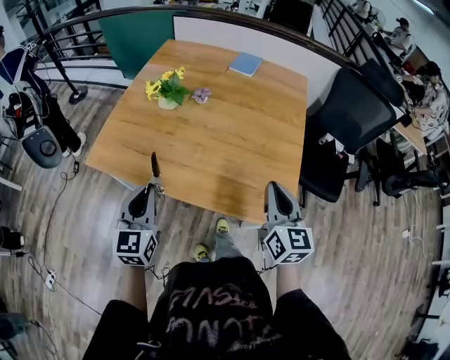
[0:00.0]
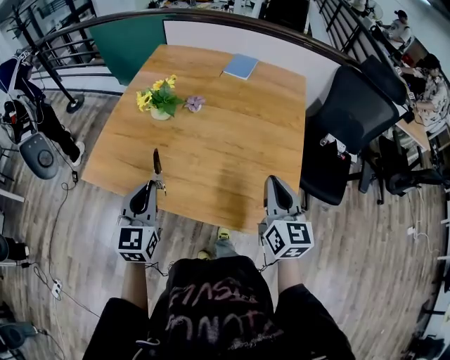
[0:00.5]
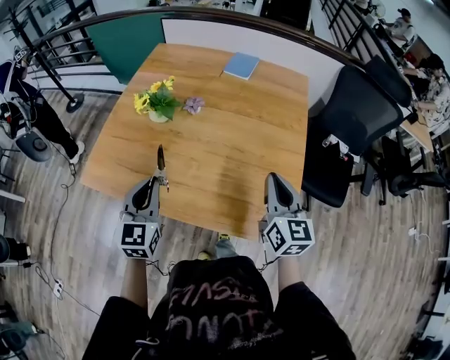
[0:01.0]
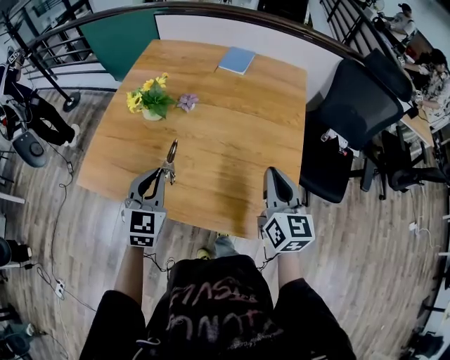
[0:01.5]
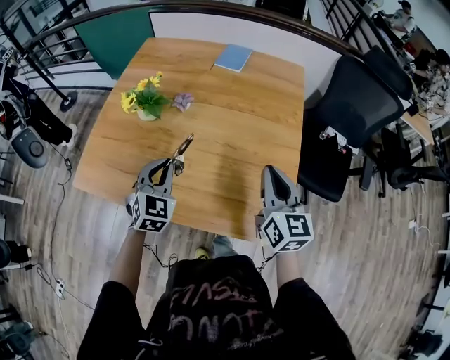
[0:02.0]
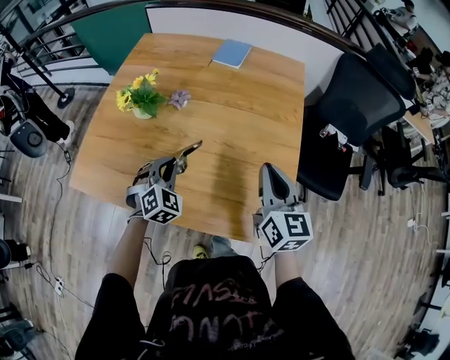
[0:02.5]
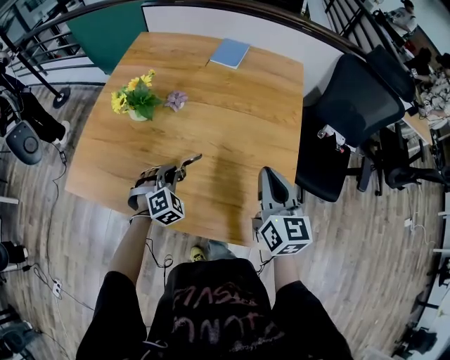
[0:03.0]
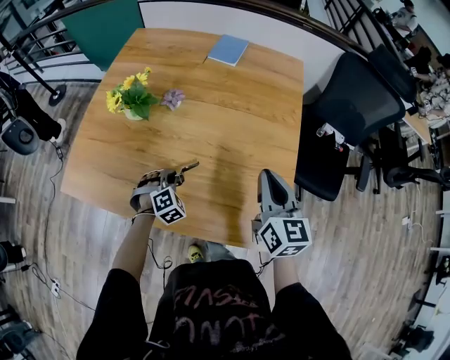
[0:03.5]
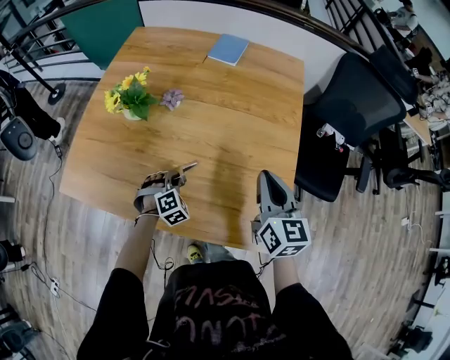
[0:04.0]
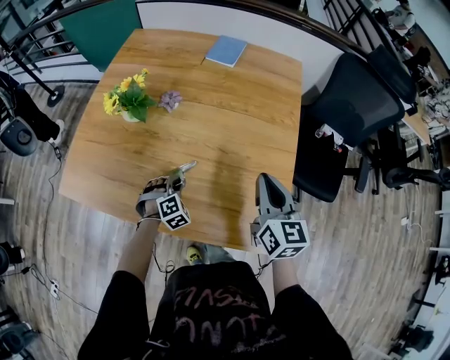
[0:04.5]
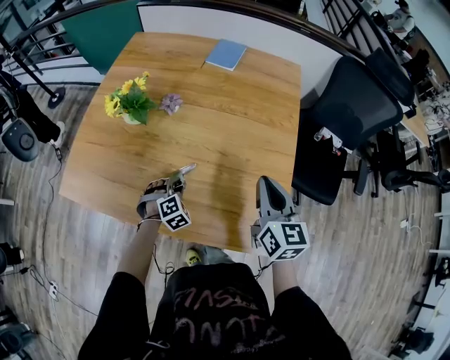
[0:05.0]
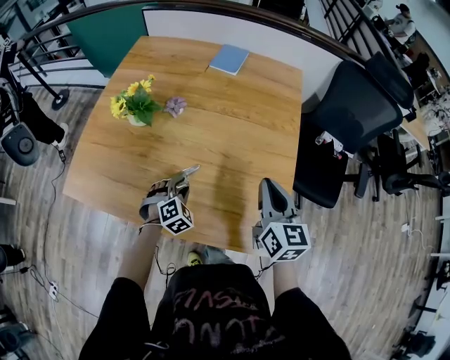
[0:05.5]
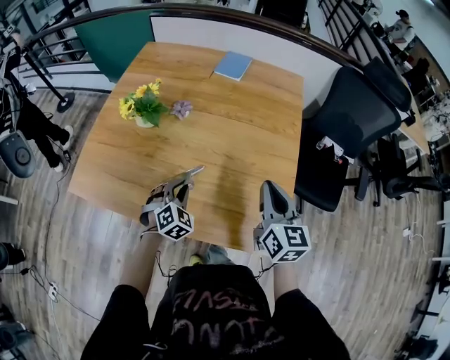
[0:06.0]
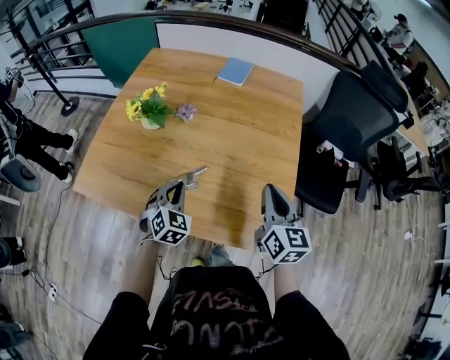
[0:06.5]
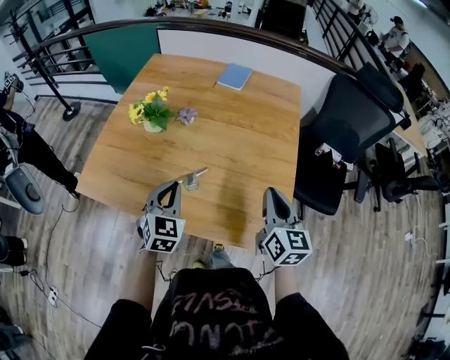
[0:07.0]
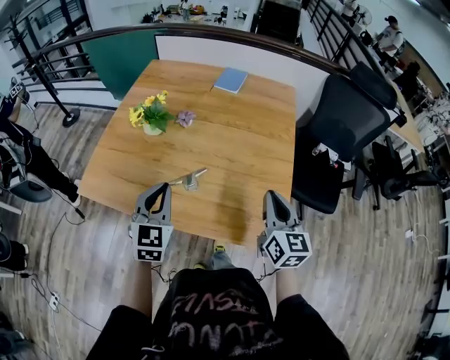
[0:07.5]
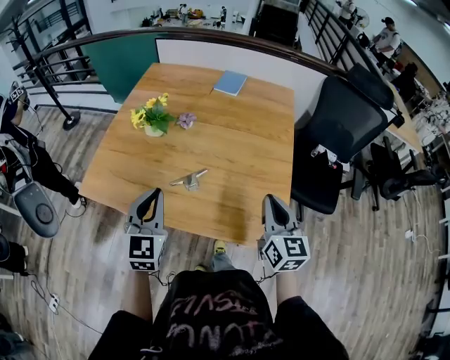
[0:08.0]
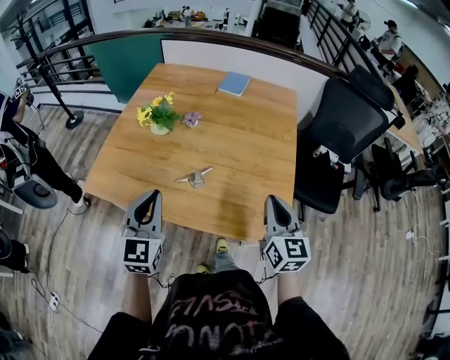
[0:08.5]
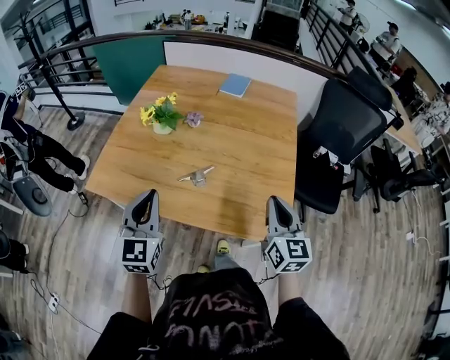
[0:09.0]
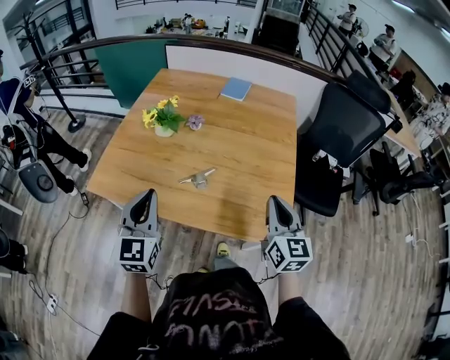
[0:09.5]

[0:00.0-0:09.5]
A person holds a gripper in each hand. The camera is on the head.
0:00.0 to 0:02.0: The right gripper moves forward, roughly 10 cm. Meanwhile the left gripper is displaced forward and to the right by some 20 cm, and swivels approximately 30 degrees.
0:02.0 to 0:04.0: The left gripper shifts about 20 cm downward, and rotates roughly 40 degrees. Meanwhile the right gripper shifts by about 5 cm.
0:04.0 to 0:05.5: The left gripper opens.
0:05.5 to 0:07.5: The right gripper moves backward, approximately 10 cm. Meanwhile the left gripper moves upward, approximately 25 cm, angles its fingers upward, by some 40 degrees, and closes its fingers.
0:07.5 to 0:09.5: The left gripper goes roughly 10 cm backward and to the left. Meanwhile the right gripper travels backward by some 5 cm.

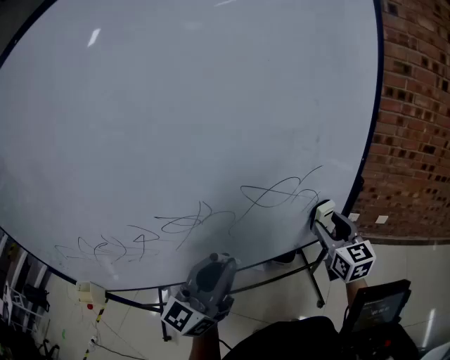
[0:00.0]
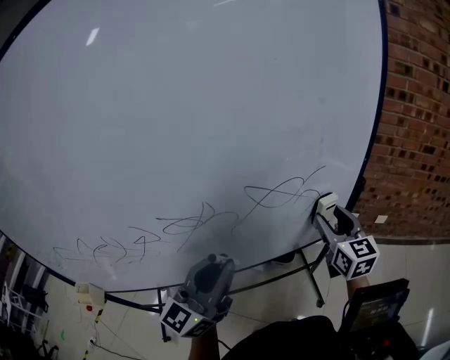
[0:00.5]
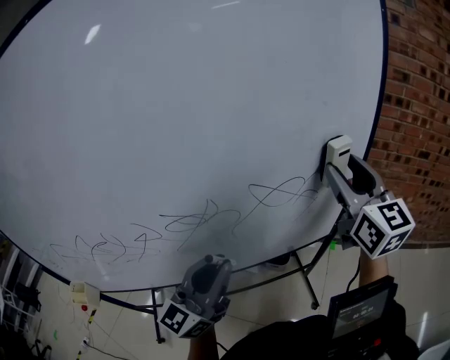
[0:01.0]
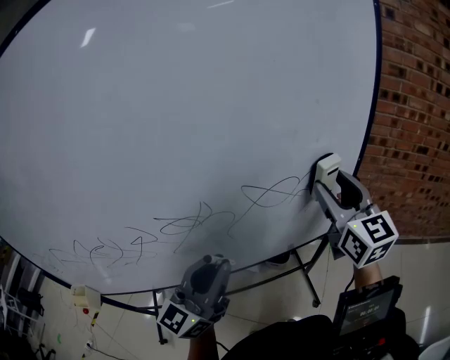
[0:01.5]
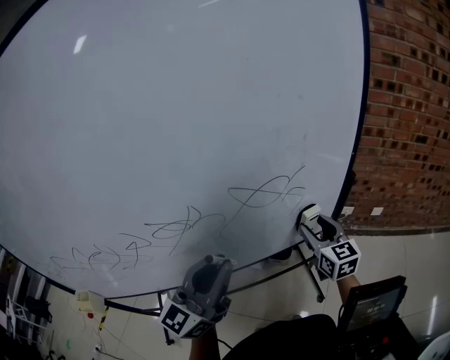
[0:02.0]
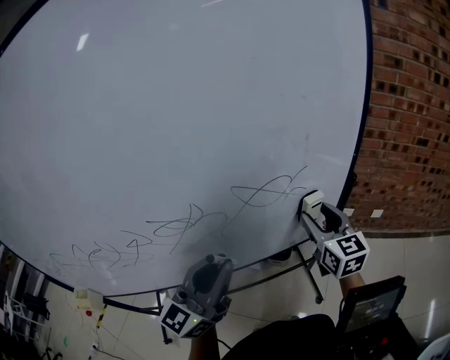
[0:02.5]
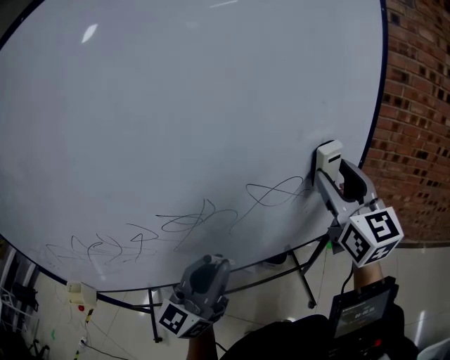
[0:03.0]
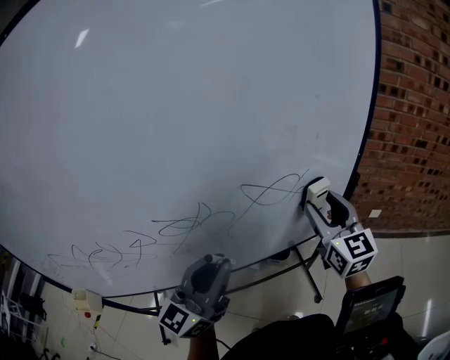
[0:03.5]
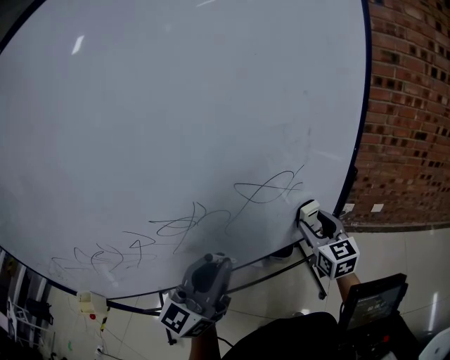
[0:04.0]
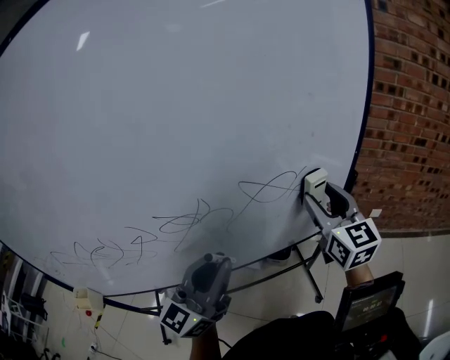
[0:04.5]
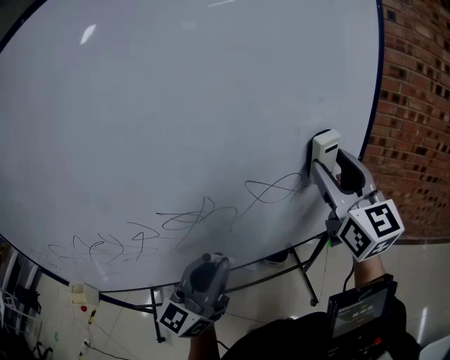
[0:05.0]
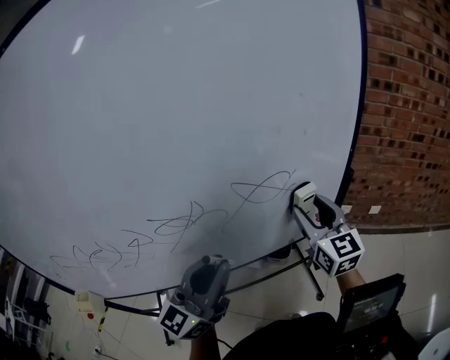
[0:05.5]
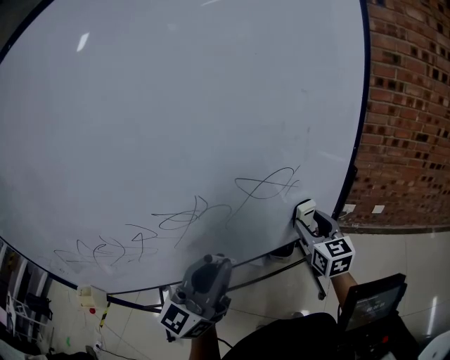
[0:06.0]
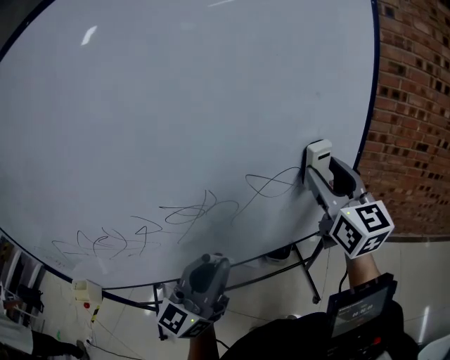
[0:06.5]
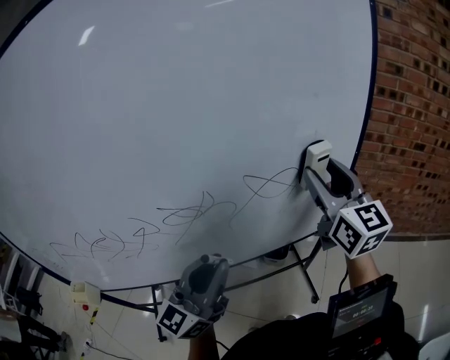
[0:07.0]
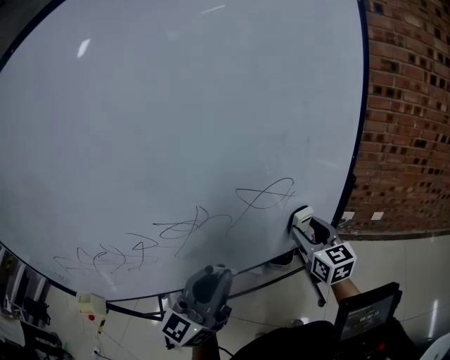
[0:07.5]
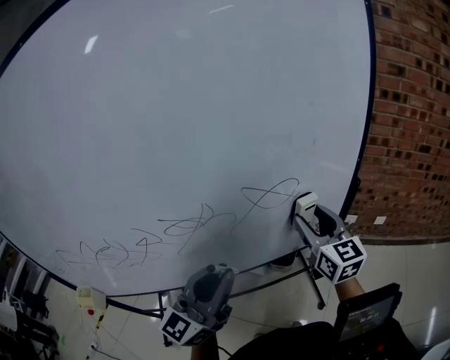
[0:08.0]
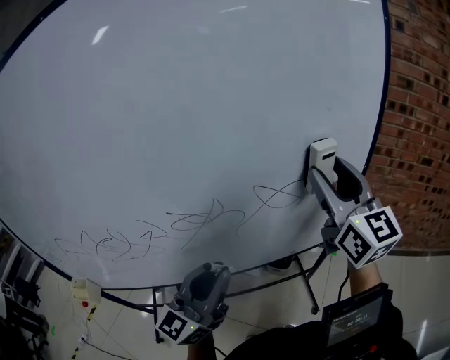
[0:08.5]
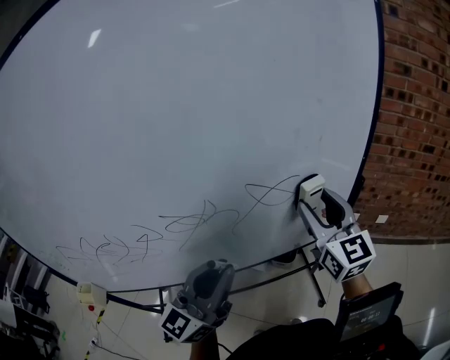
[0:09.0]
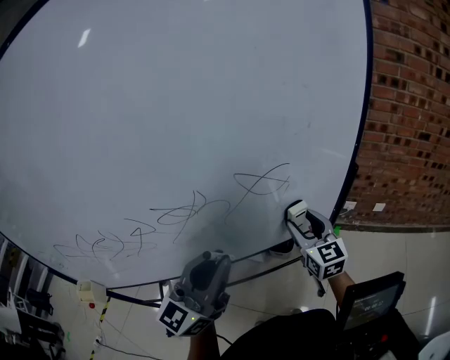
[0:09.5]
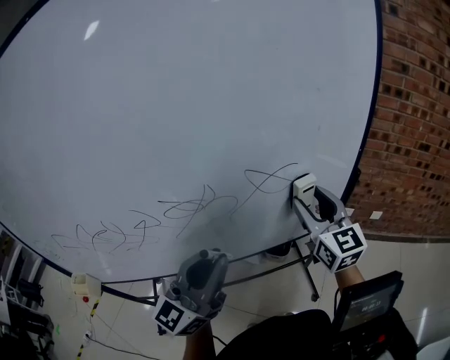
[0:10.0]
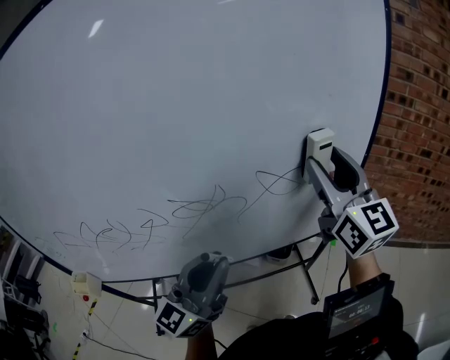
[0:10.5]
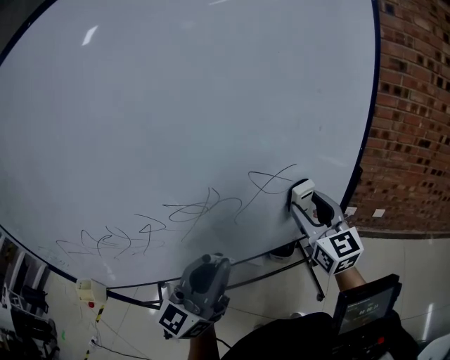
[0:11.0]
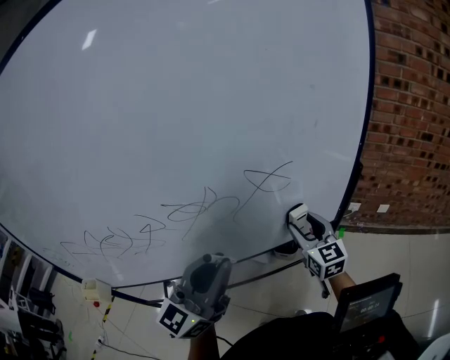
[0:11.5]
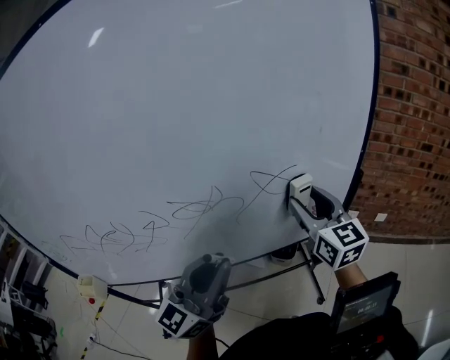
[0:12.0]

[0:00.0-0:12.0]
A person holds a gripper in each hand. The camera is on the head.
0:00.0 to 0:02.0: The right gripper moves some 25 cm upward and comes back.
0:02.0 to 0:04.0: The right gripper goes upward and returns, some 25 cm each way.
0:04.0 to 0:06.0: The right gripper moves approximately 25 cm upward and comes back.
0:06.0 to 0:08.0: The right gripper moves up and down over approximately 20 cm, changing direction 2 times.
0:08.0 to 0:10.0: The right gripper moves up and down over about 25 cm, changing direction 2 times.
0:10.0 to 0:12.0: The right gripper swings up and down, approximately 25 cm each way, with 2 reversals.

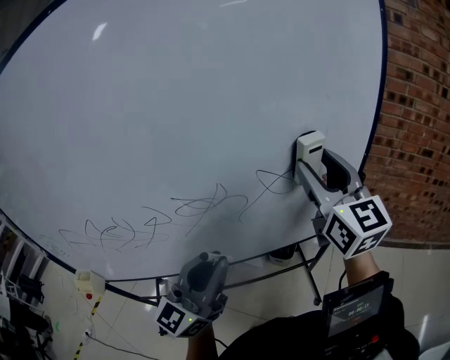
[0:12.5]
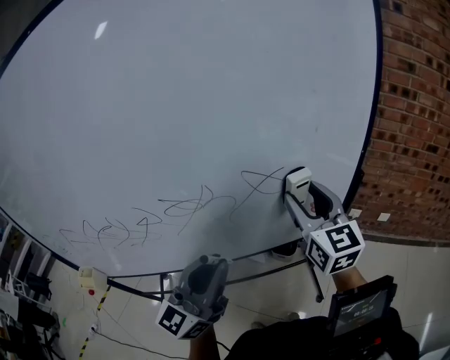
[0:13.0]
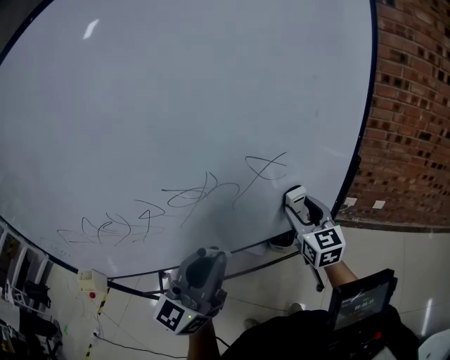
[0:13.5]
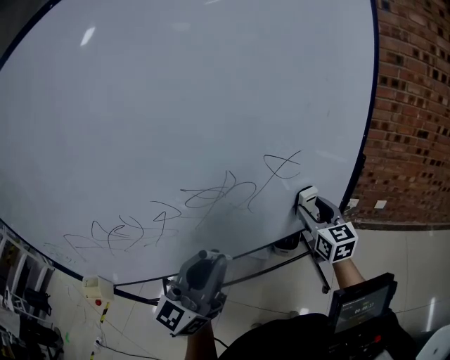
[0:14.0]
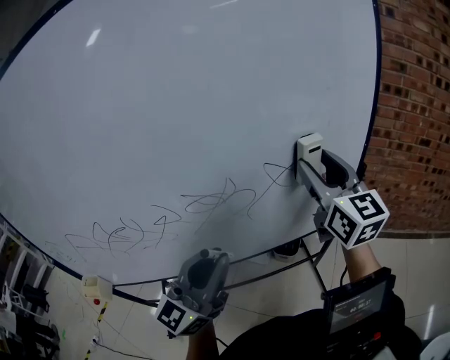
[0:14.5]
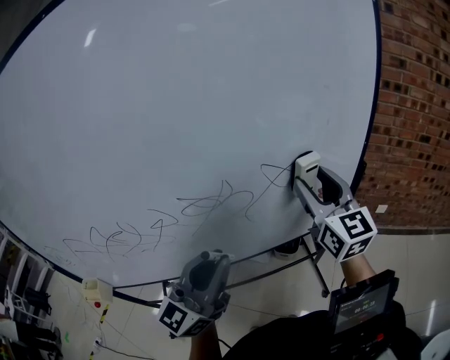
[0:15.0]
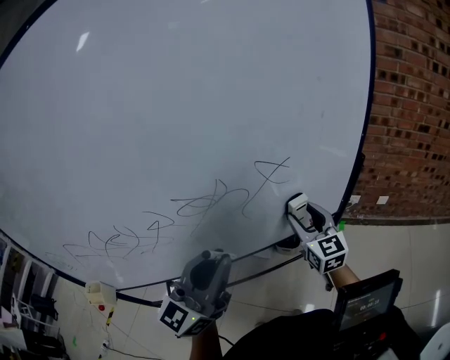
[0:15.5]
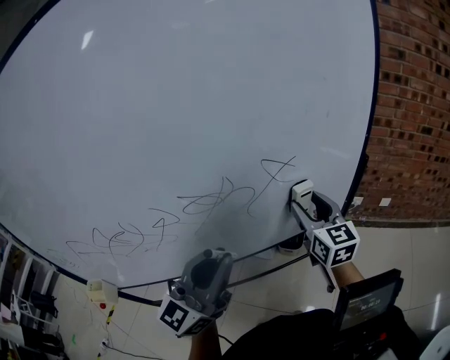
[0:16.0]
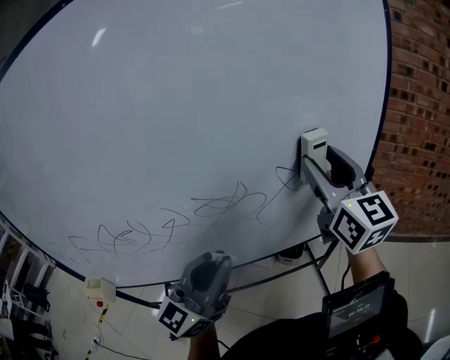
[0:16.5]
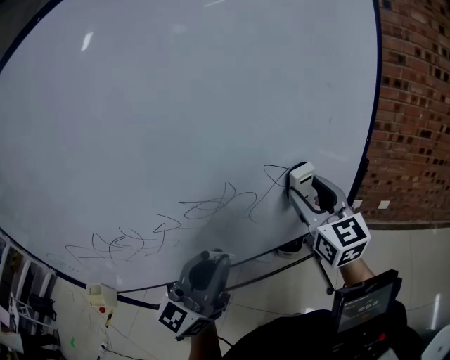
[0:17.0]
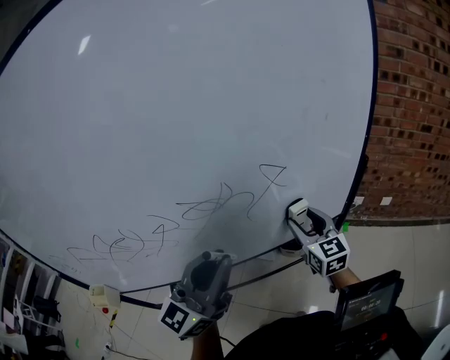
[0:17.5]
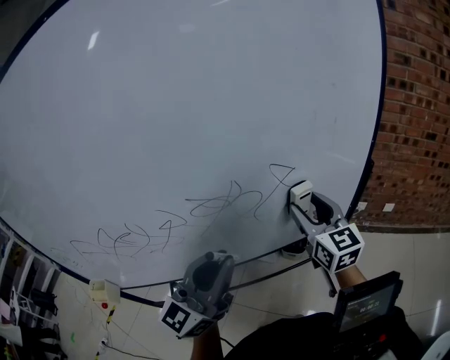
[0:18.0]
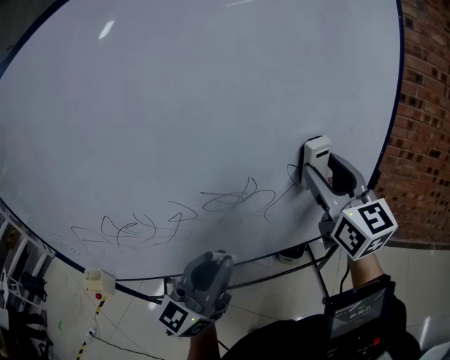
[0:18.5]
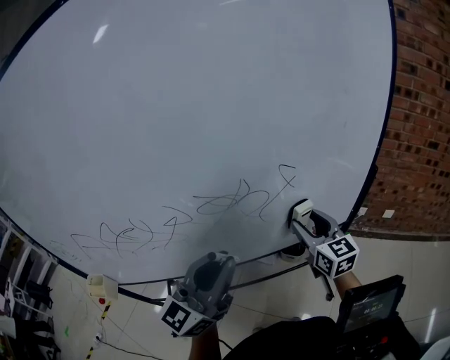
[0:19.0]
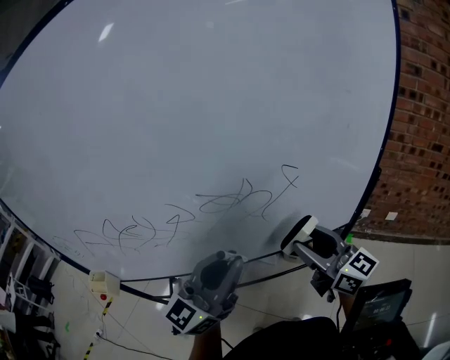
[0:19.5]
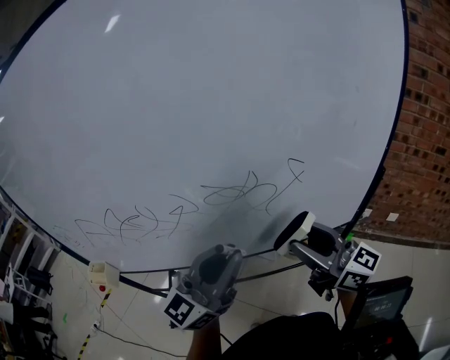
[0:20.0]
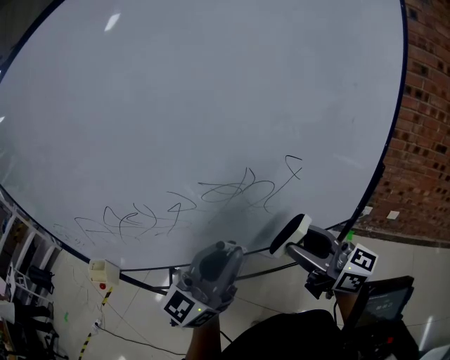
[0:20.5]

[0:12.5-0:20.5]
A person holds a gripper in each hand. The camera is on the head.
0:12.5 to 0:14.5: The right gripper reaches approximately 25 cm downward, then returns.
0:14.5 to 0:16.5: The right gripper goes downward and returns, about 20 cm each way.
0:16.5 to 0:18.5: The right gripper reaches about 25 cm downward, then returns.
0:18.5 to 0:20.5: The right gripper is displaced downward and backward by about 15 cm, and changes its angle by roughly 40 degrees.
